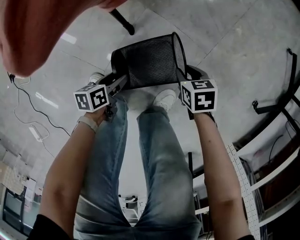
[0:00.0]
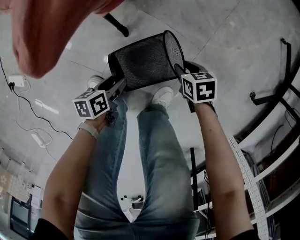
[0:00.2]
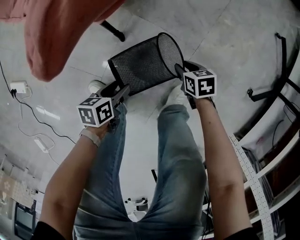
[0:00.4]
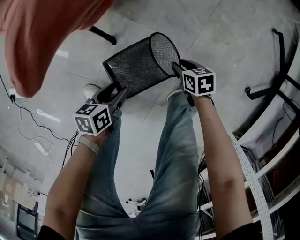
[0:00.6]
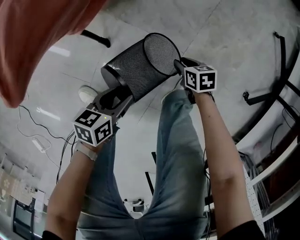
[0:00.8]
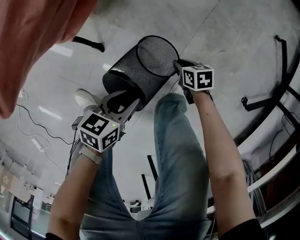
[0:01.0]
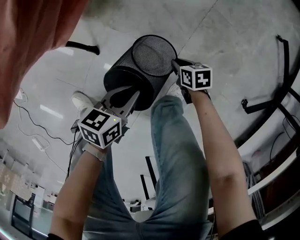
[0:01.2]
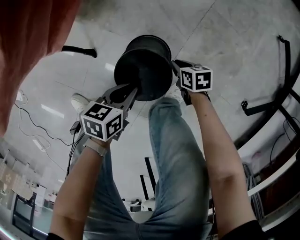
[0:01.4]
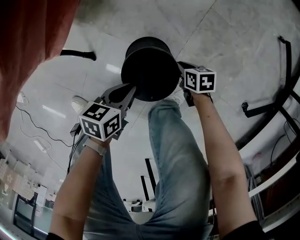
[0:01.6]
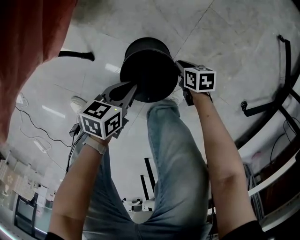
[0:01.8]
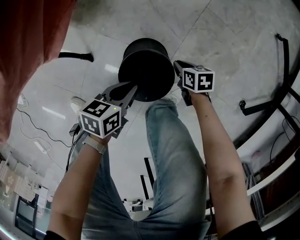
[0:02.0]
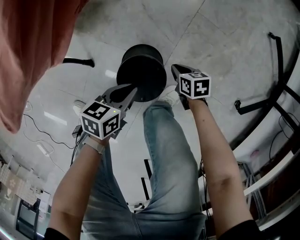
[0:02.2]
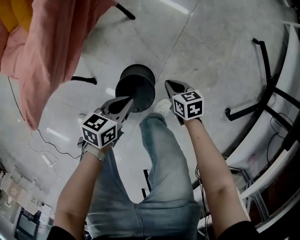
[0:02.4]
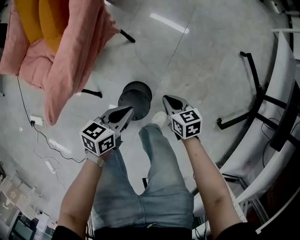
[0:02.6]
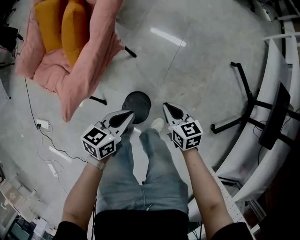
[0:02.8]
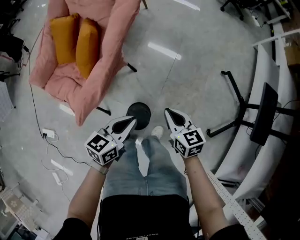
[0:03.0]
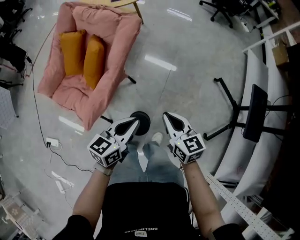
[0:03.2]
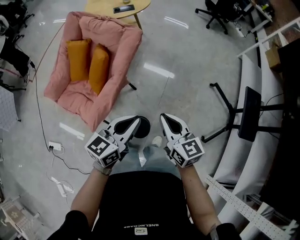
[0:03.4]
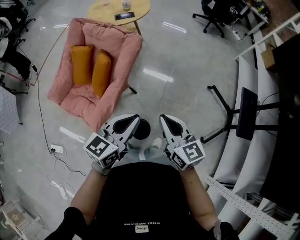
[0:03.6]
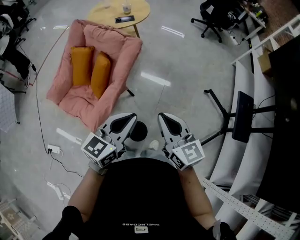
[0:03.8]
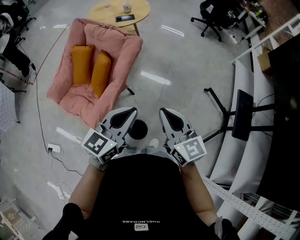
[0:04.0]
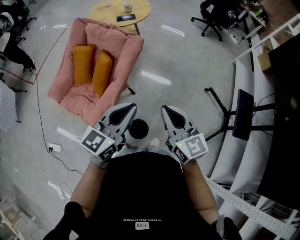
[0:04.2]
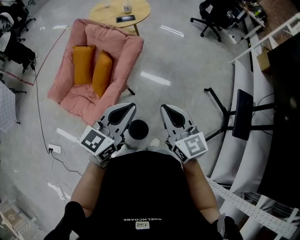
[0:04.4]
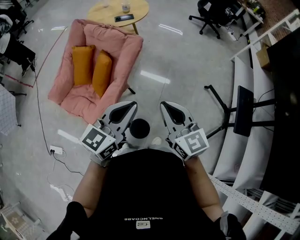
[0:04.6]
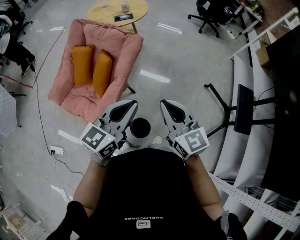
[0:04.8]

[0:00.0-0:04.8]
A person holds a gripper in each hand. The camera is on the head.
0:00.0 to 0:01.6: The left gripper moves to the right and forward, roughly 25 cm, changes its angle by roughly 20 degrees, and closes its fingers; the right gripper heads to the right, forward and downward, covering approximately 25 cm, and closes.
0:01.6 to 0:03.2: Both grippers move upward, about 60 cm. The right gripper tips its fingers upward by some 40 degrees. The left gripper swivels roughly 40 degrees.
0:03.2 to 0:04.8: Both grippers move upward, about 20 cm. The left gripper rotates about 20 degrees. The right gripper swivels some 20 degrees.

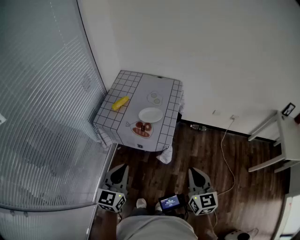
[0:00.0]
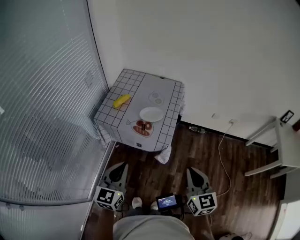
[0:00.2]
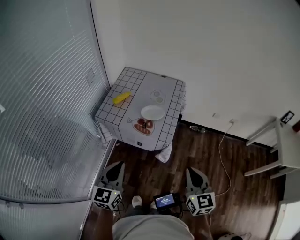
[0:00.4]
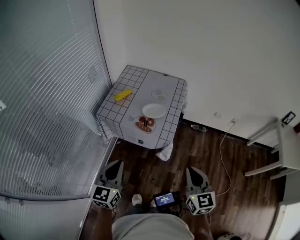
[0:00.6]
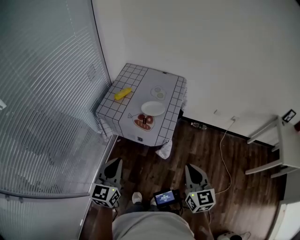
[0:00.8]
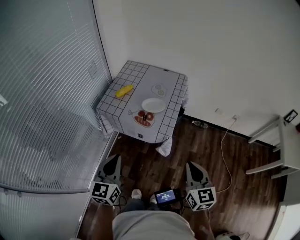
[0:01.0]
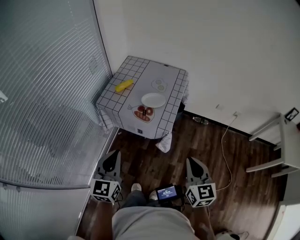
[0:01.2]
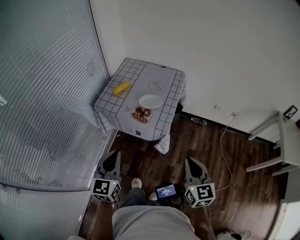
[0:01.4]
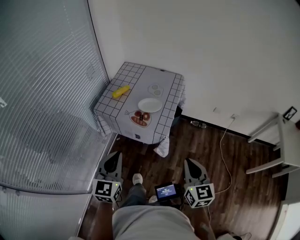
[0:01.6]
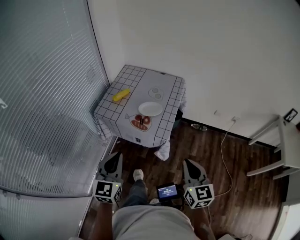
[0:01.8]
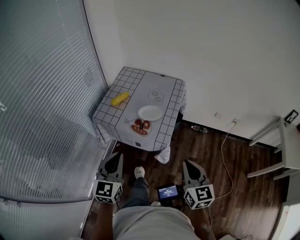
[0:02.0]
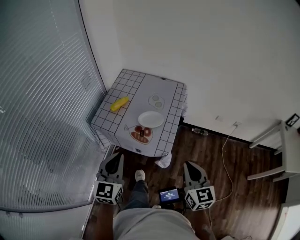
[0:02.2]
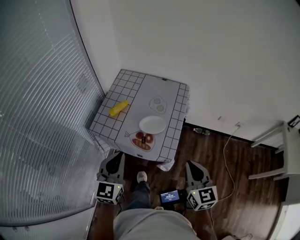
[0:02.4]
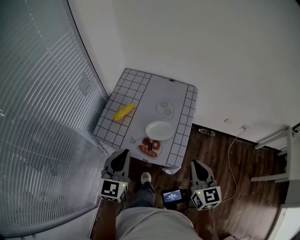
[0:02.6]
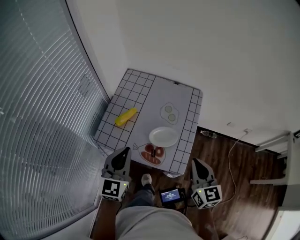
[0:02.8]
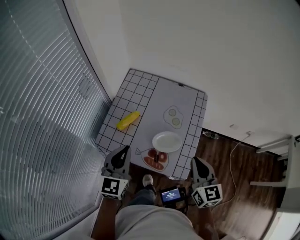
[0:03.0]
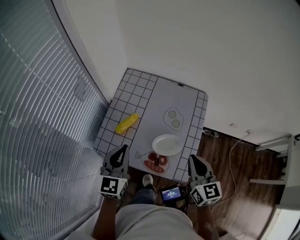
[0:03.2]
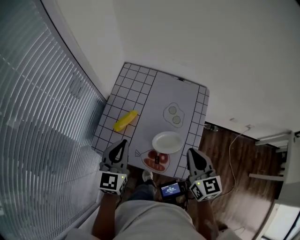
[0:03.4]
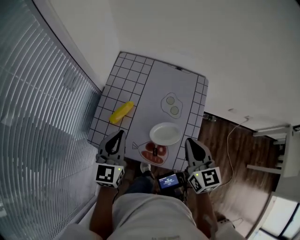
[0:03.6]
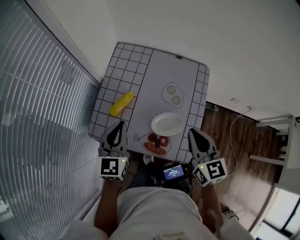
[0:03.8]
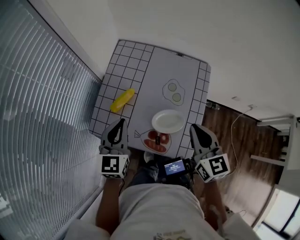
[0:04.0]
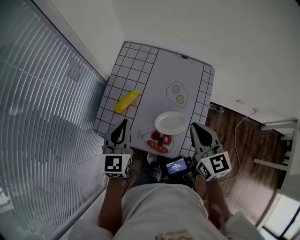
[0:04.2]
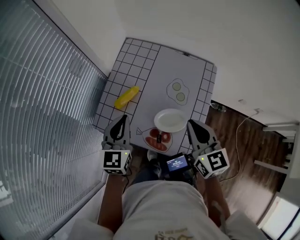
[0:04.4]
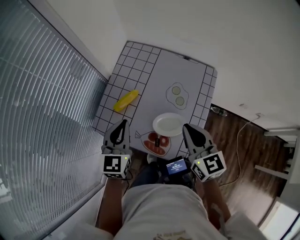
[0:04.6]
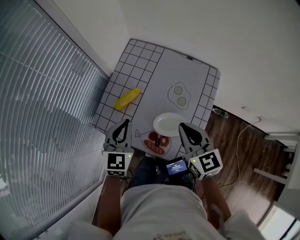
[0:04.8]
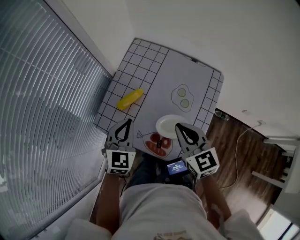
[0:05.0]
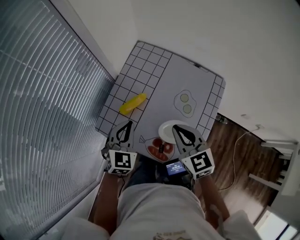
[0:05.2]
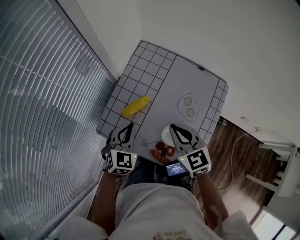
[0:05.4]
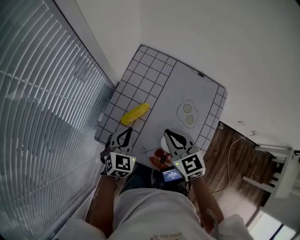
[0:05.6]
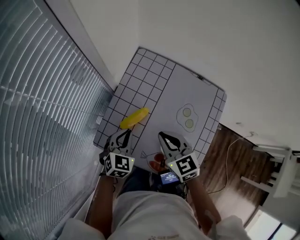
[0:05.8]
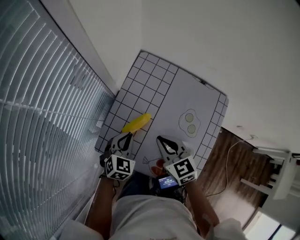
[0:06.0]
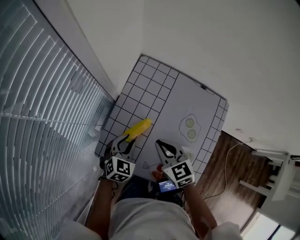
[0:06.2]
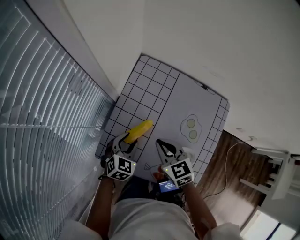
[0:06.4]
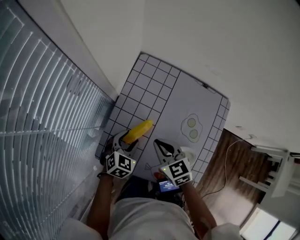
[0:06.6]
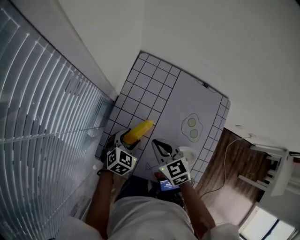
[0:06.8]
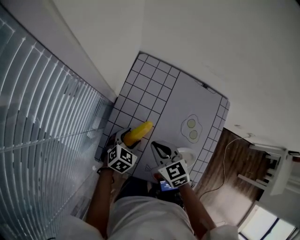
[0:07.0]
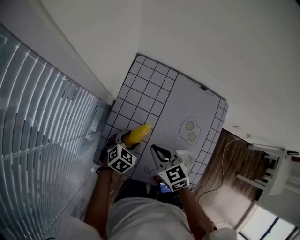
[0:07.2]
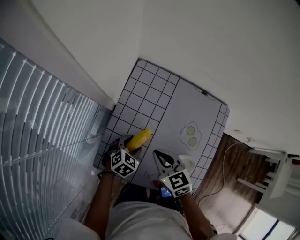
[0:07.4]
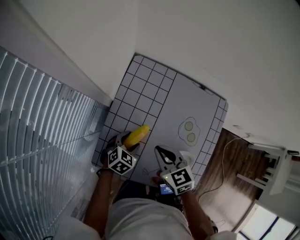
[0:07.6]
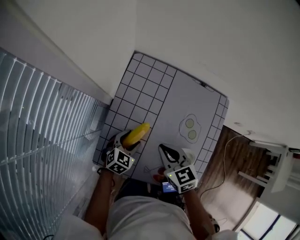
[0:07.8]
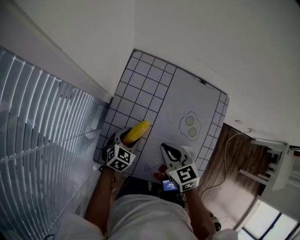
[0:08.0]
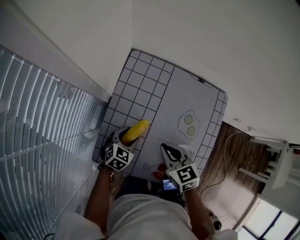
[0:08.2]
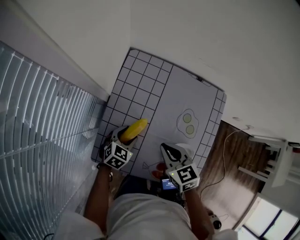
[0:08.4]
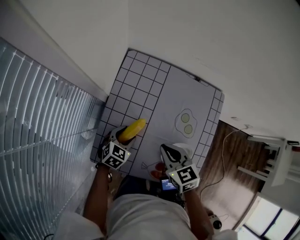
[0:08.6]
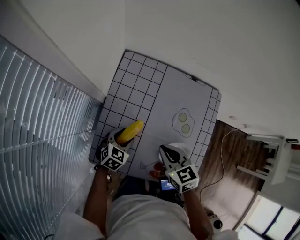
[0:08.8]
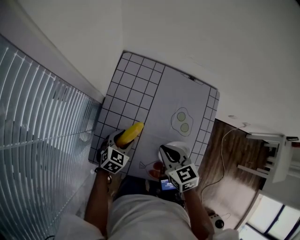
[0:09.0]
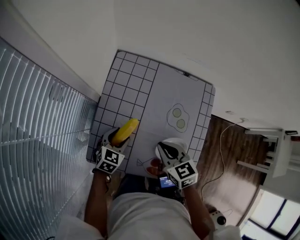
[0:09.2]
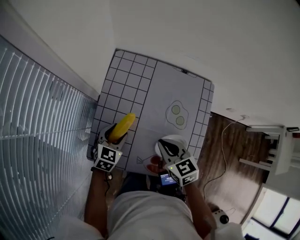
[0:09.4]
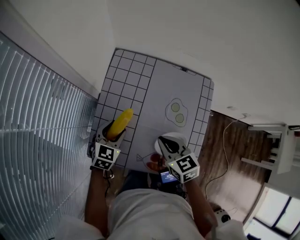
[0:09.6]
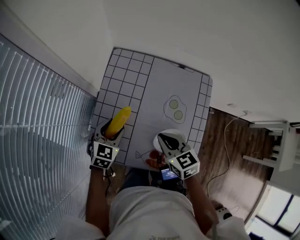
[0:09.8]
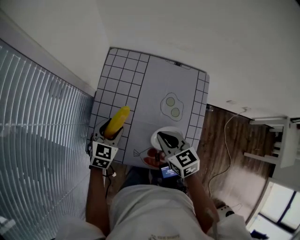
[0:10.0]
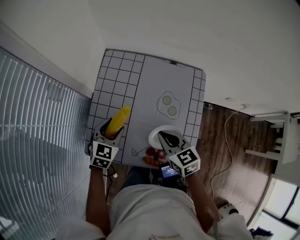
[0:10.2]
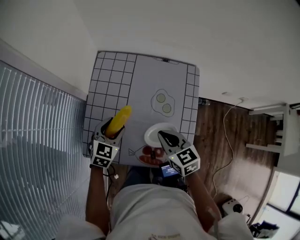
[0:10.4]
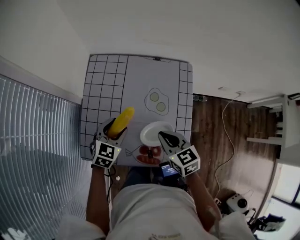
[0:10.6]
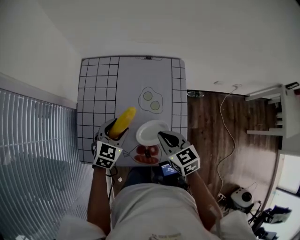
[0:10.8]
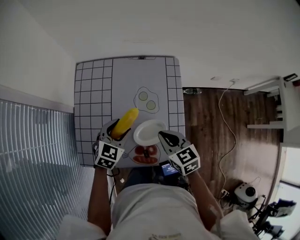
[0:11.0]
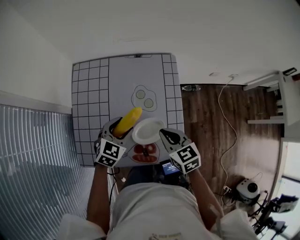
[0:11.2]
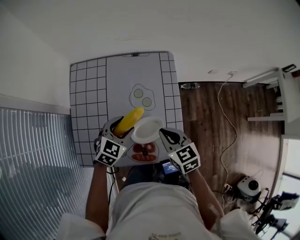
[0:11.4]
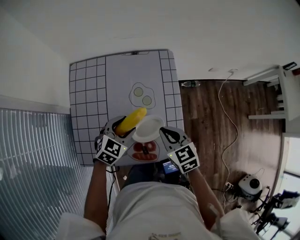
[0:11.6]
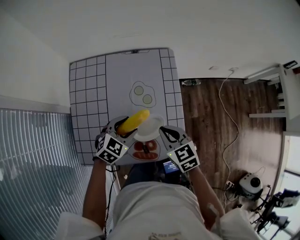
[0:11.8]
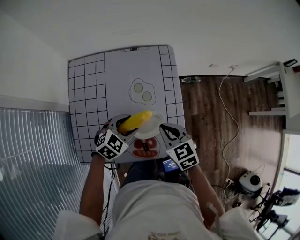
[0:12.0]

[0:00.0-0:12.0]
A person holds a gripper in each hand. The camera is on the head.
0:00.0 to 0:01.6: The grippers make only small movements.
0:01.6 to 0:03.0: Both grippers travel together forward, approximately 35 cm.
0:03.0 to 0:04.4: The two grippers go some 10 cm forward.
0:04.4 to 0:06.0: The left gripper goes approximately 15 cm downward and forward, and changes its angle by about 30 degrees, while the right gripper travels to the left, forward and downward by some 20 cm, and swivels about 20 degrees.
0:06.0 to 0:07.6: The left gripper travels downward by about 10 cm, turns by approximately 20 degrees, and opens up.
0:07.6 to 0:09.0: The right gripper heads to the right, covering approximately 5 cm.
0:09.0 to 0:10.4: The left gripper is displaced upward by some 10 cm. The right gripper shifts roughly 5 cm to the right.
0:10.4 to 0:12.0: The right gripper changes place by some 10 cm; the left gripper moves some 15 cm, and swivels some 40 degrees.

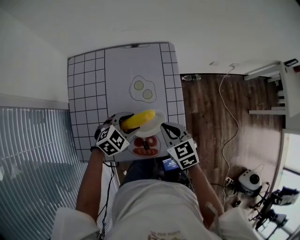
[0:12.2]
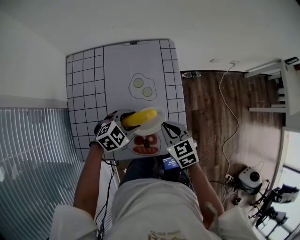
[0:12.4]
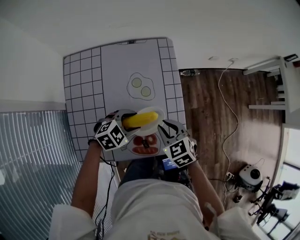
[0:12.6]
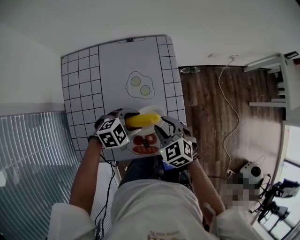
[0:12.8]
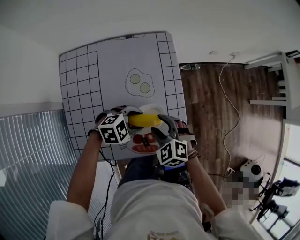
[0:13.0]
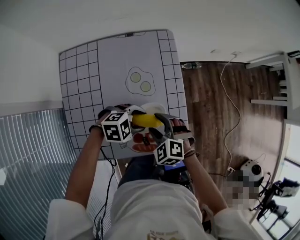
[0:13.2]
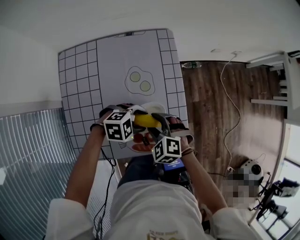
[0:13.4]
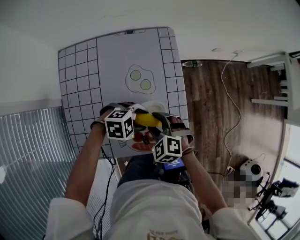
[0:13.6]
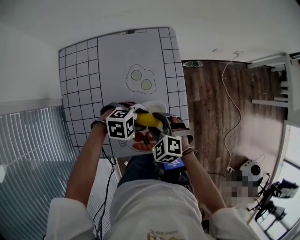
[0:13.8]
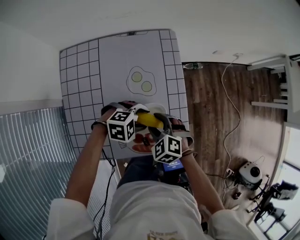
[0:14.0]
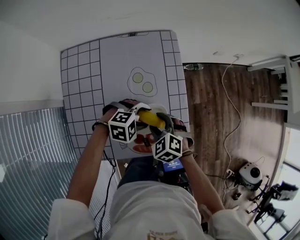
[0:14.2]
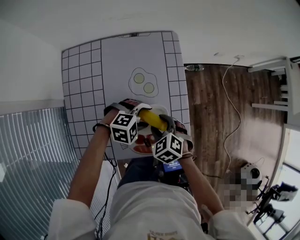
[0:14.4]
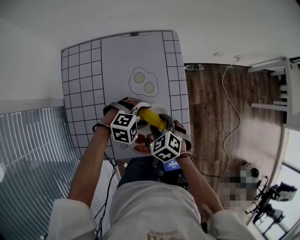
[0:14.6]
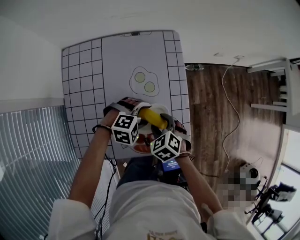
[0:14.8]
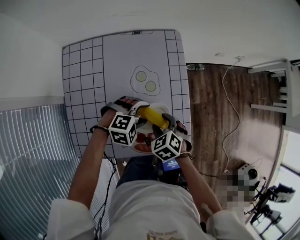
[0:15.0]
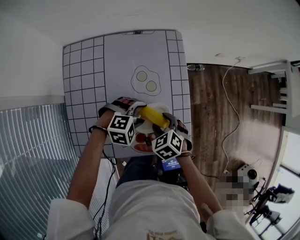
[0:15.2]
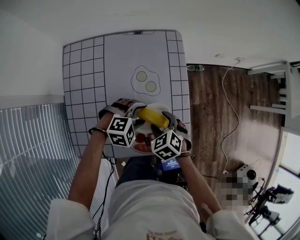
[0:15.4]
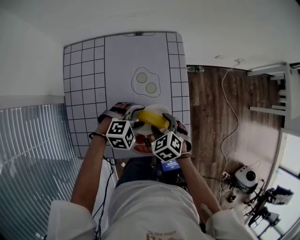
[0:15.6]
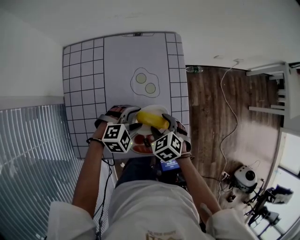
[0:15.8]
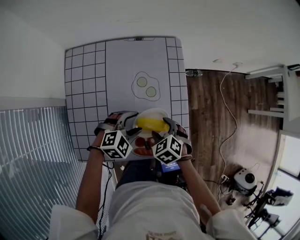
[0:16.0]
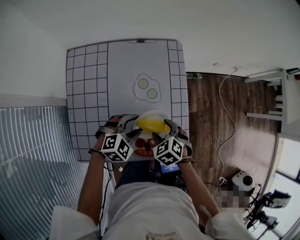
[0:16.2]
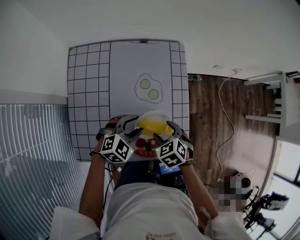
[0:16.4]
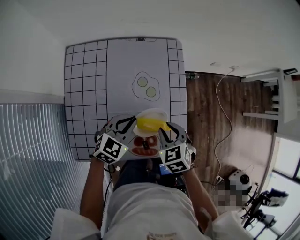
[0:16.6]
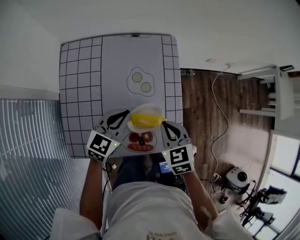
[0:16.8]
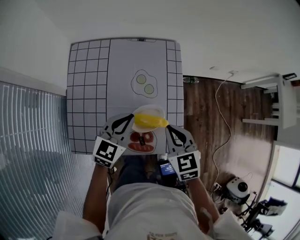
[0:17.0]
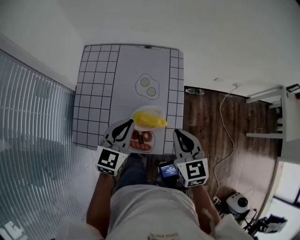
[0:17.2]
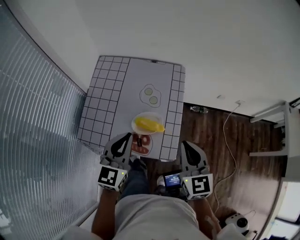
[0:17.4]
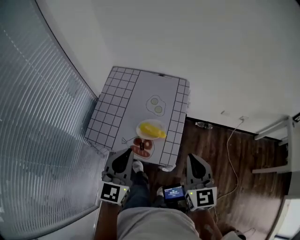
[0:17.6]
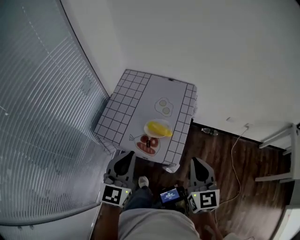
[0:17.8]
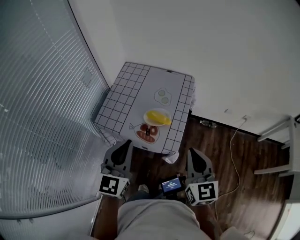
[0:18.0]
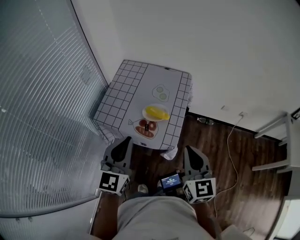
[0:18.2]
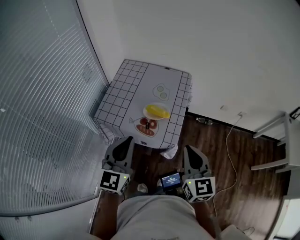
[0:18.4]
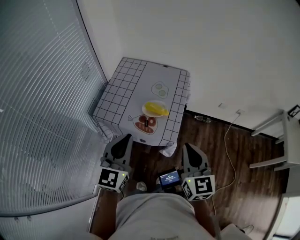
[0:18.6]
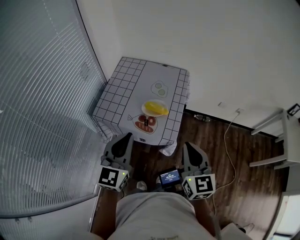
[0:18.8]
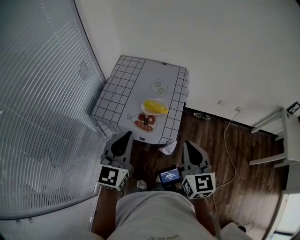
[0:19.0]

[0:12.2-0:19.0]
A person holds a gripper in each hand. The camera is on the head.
0:12.2 to 0:13.6: The left gripper ends up approximately 5 cm from where it was, and changes its angle by approximately 40 degrees, while the right gripper goes about 5 cm downward, swivels some 40 degrees, and opens.
0:13.6 to 0:15.0: The right gripper changes its angle by approximately 20 degrees. Meanwhile the left gripper turns by about 20 degrees.
0:15.0 to 0:16.2: The left gripper rotates about 20 degrees.
0:16.2 to 0:17.6: The grippers both shift upward by approximately 25 cm. The left gripper tilts its fingers about 40 degrees upward, and closes up. Meanwhile the right gripper tips its fingers upward by roughly 50 degrees, and closes up.
0:17.6 to 0:19.0: The grippers both shift backward by approximately 10 cm.
